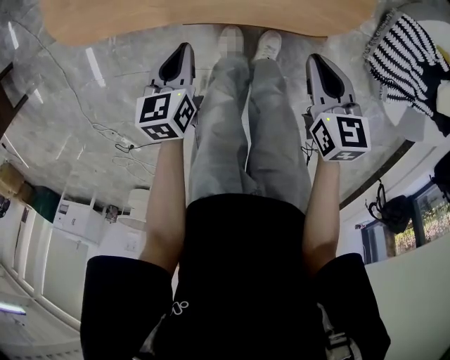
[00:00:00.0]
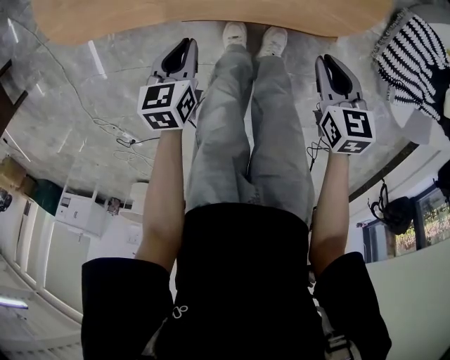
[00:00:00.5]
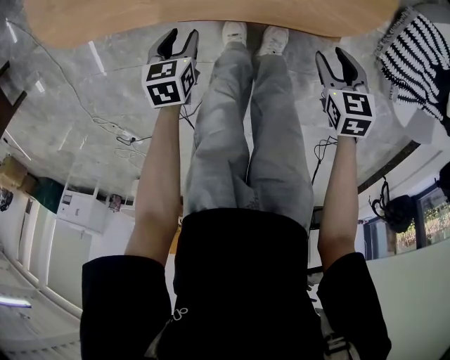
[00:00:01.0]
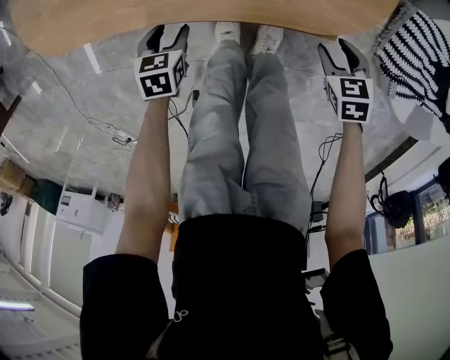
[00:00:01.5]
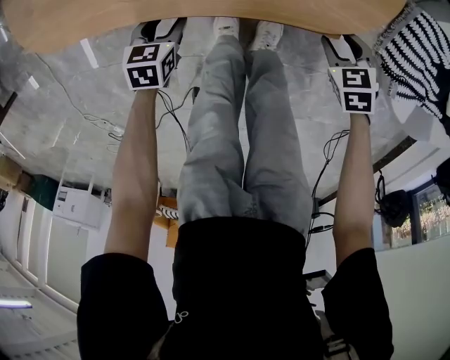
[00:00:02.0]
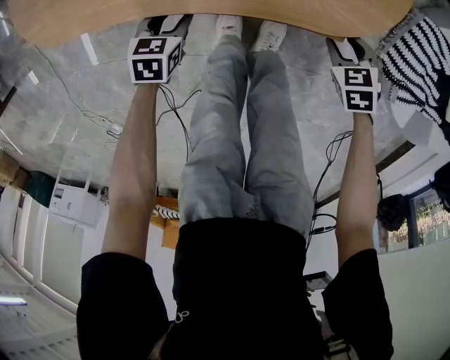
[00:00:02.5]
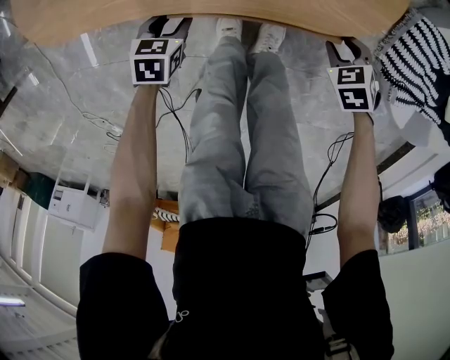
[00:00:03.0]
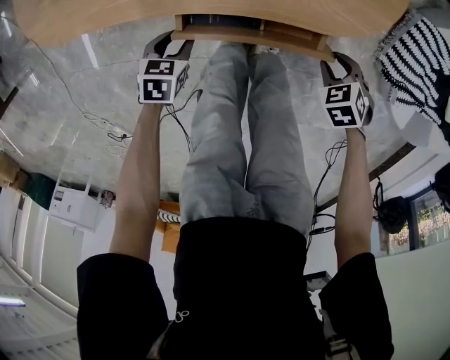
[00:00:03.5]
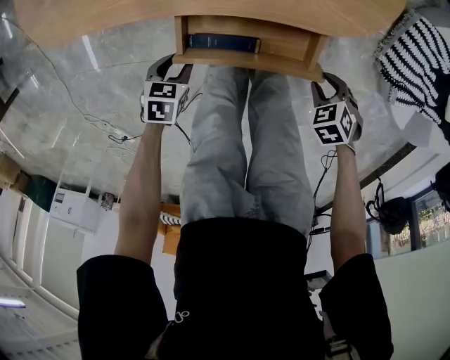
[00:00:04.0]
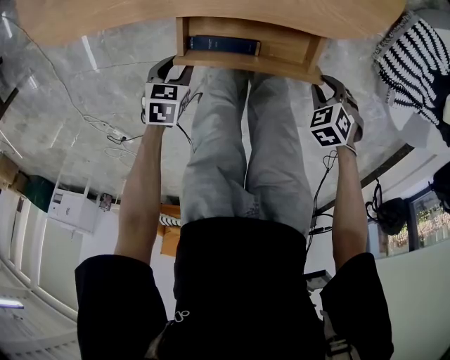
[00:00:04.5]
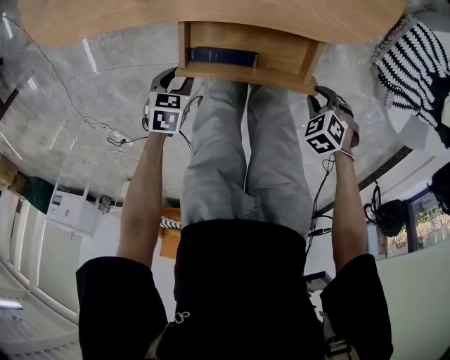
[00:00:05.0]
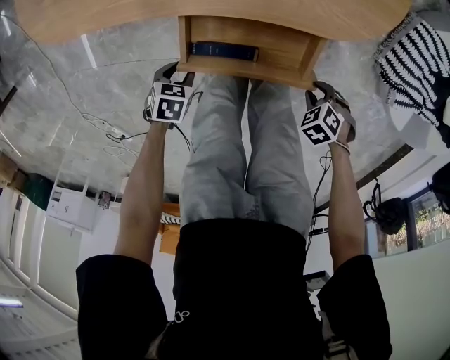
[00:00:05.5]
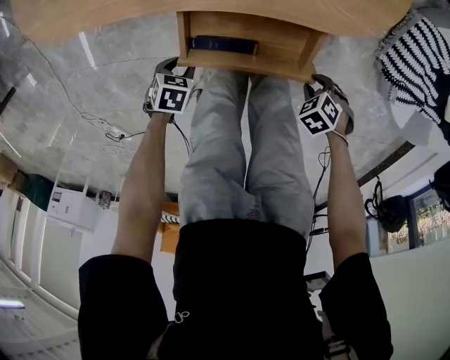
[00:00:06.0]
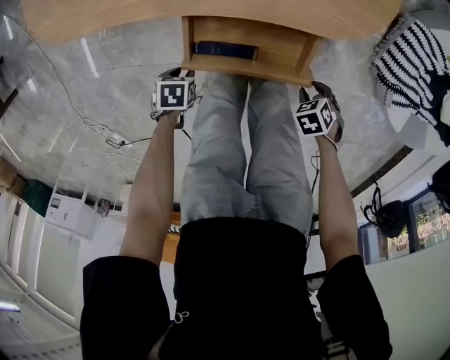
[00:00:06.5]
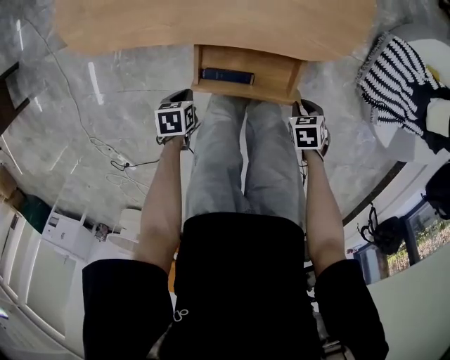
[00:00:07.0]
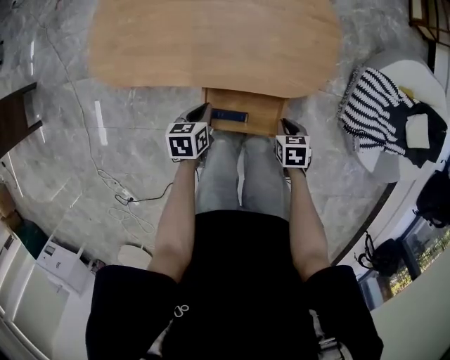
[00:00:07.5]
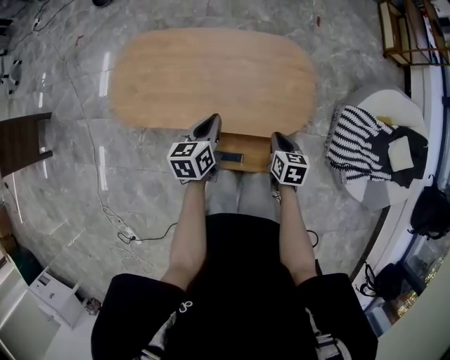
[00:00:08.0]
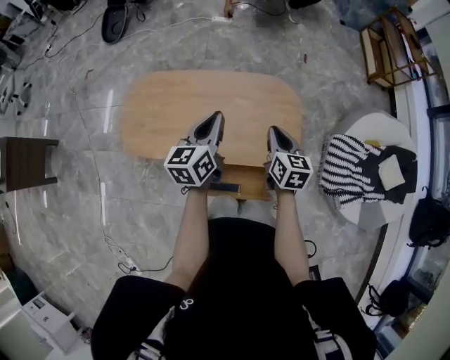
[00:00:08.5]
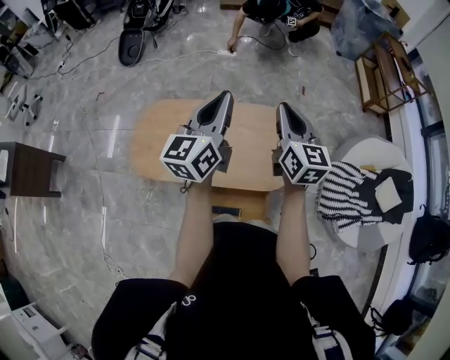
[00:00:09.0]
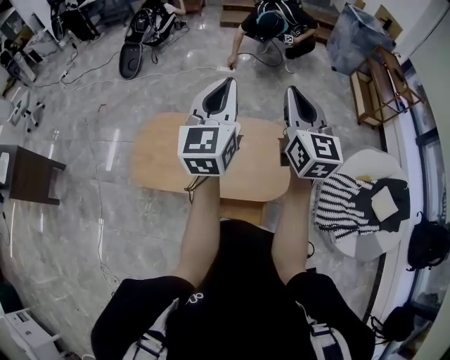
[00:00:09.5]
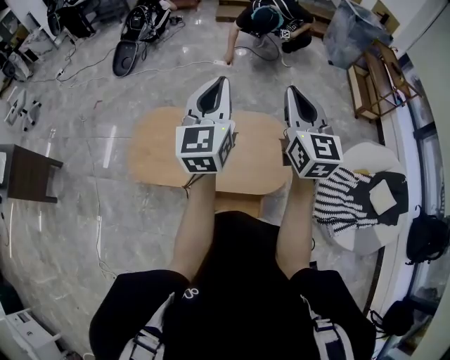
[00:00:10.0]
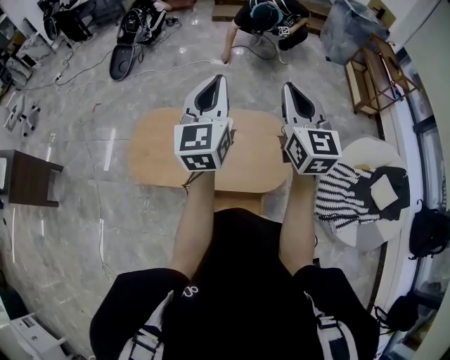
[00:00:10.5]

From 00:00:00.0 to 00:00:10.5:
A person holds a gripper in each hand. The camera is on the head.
From 00:00:00.0 to 00:00:02.0: Both grippers travel together downward, approximately 20 cm. The right gripper turns by roughly 40 degrees, and opens. The left gripper opens.
From 00:00:02.0 to 00:00:04.0: The right gripper ends up approximately 15 cm from where it was. Meanwhile the left gripper changes place by approximately 15 cm.
From 00:00:04.0 to 00:00:06.5: The left gripper moves some 5 cm. The right gripper shifts by some 5 cm.
From 00:00:06.5 to 00:00:08.5: The two grippers go about 50 cm upward. The right gripper points its fingers about 60 degrees further upward, and closes its fingers, while the left gripper points its fingers roughly 60 degrees further upward, and closes.
From 00:00:08.5 to 00:00:10.5: Both grippers travel together upward, about 30 cm. The right gripper rotates roughly 40 degrees, while the left gripper swivels approximately 30 degrees.

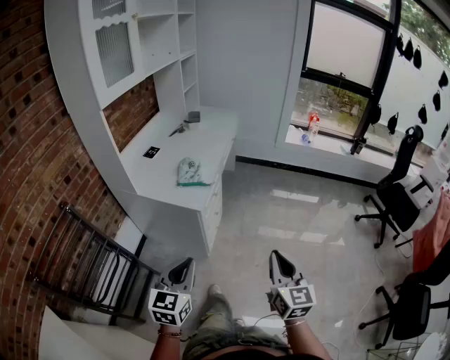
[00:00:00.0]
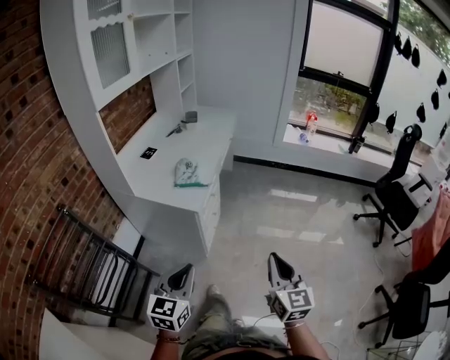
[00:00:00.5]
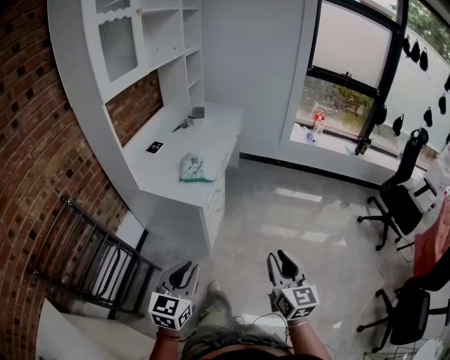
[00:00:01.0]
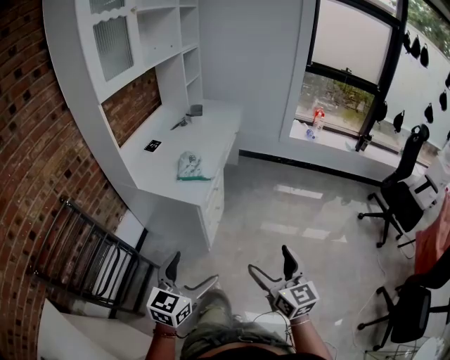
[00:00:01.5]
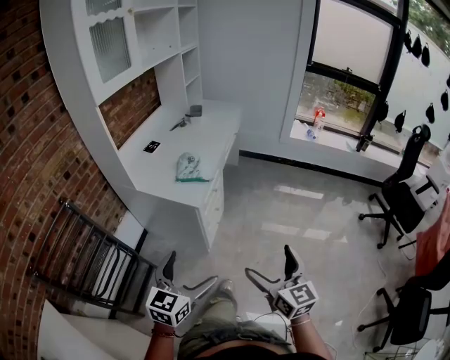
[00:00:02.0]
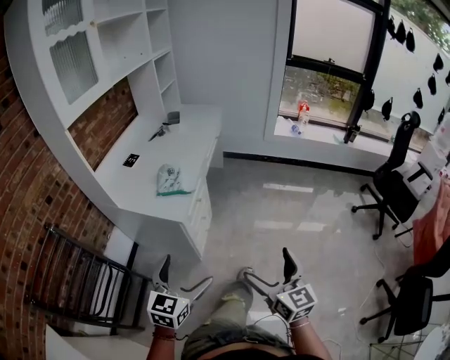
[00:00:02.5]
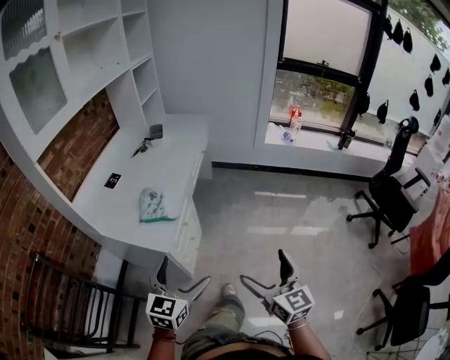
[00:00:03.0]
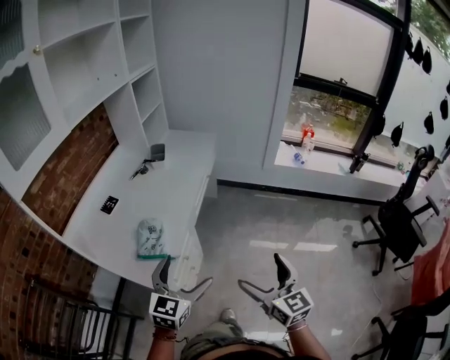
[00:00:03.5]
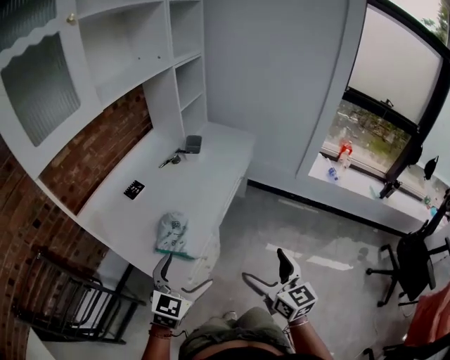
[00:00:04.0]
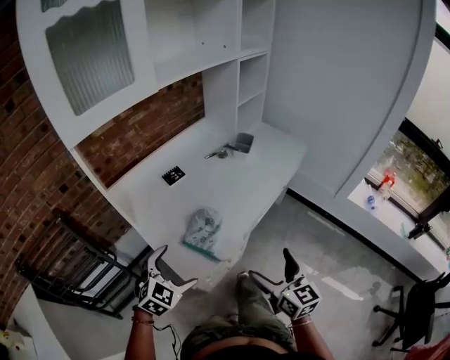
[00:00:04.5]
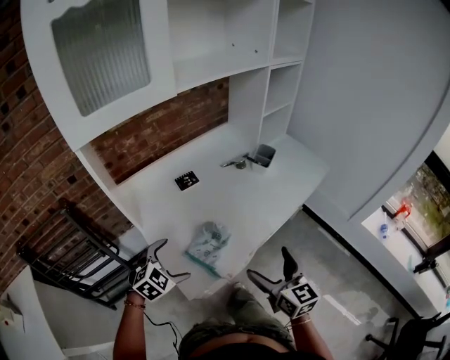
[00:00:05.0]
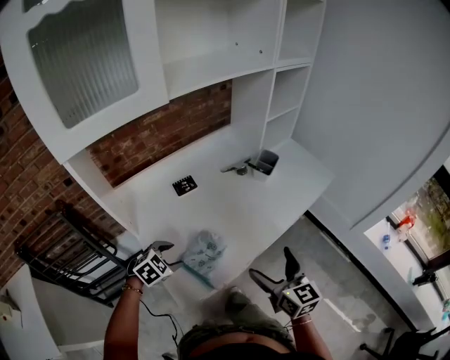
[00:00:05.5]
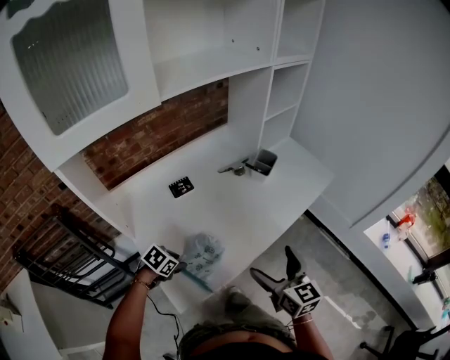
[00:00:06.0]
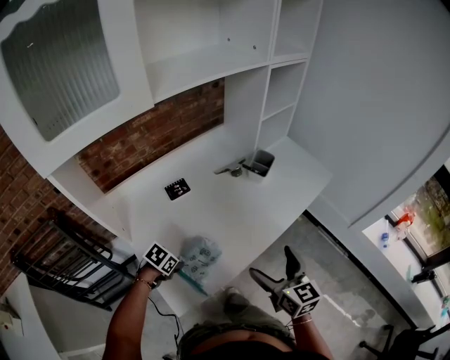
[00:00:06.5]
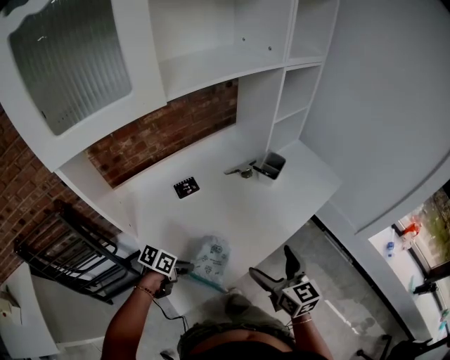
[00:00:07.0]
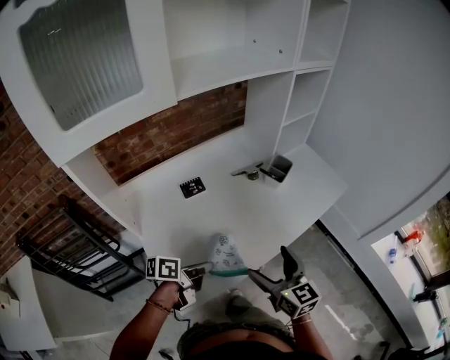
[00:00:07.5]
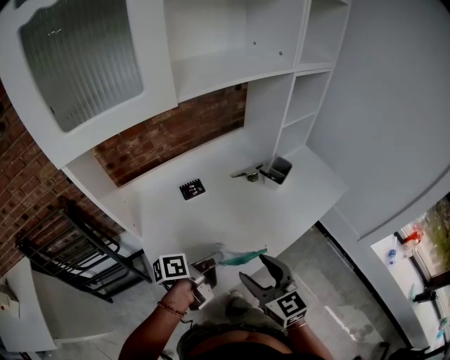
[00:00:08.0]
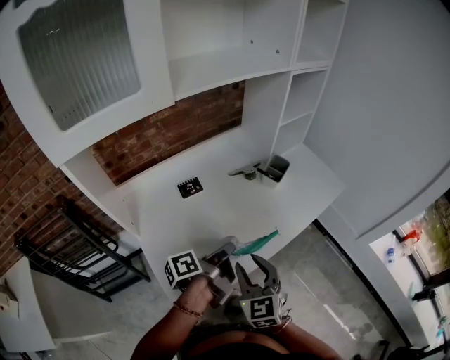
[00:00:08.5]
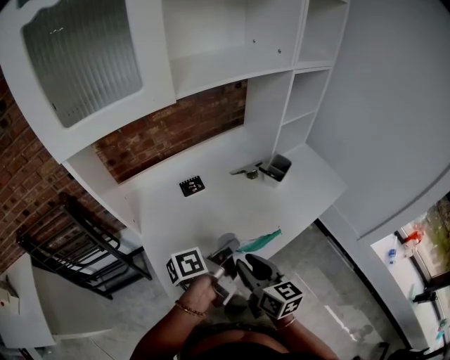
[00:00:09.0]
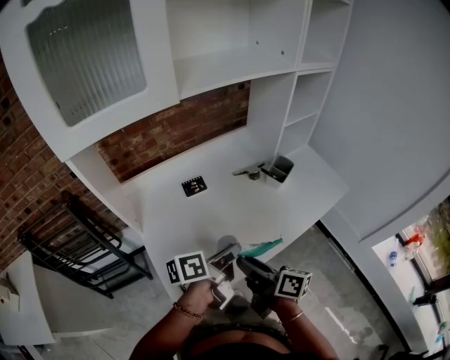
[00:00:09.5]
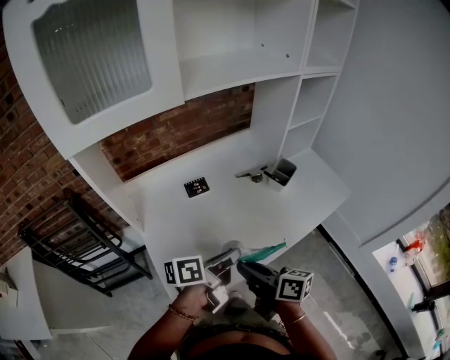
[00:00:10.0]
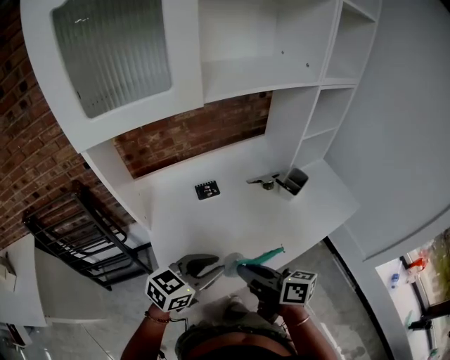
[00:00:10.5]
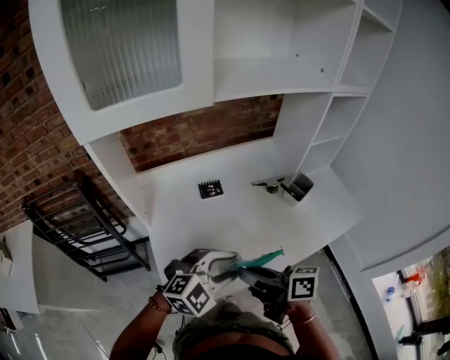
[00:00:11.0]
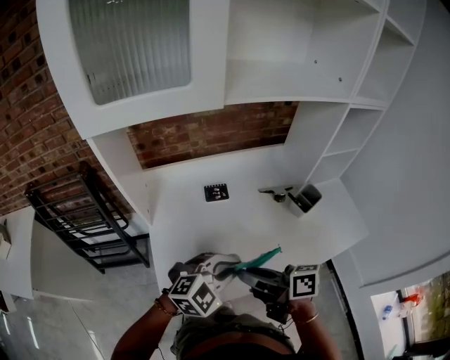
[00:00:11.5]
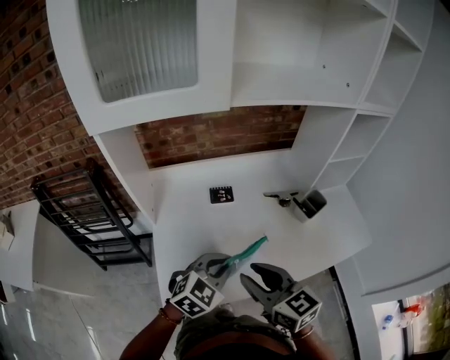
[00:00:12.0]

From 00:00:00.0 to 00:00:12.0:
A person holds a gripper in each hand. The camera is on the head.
From 00:00:00.0 to 00:00:02.0: The left gripper opens up. Meanwhile the right gripper opens up.
From 00:00:02.0 to 00:00:04.0: The pair of grippers is taken forward, some 40 cm.
From 00:00:04.0 to 00:00:06.0: The right gripper is displaced forward by some 25 cm, and turns by approximately 20 degrees. The left gripper travels downward, forward and to the left by some 30 cm, tilts its fingers roughly 40 degrees downward, and closes its fingers.
From 00:00:06.0 to 00:00:08.0: The right gripper travels to the left by approximately 10 cm, rotates roughly 20 degrees, and closes, while the left gripper moves upward, to the right and forward, about 20 cm, and tilts its fingers some 50 degrees upward.
From 00:00:08.0 to 00:00:10.0: The left gripper heads upward, covering about 5 cm, while the right gripper rolls clockwise, seen from behind, by about 50 degrees, and closes its fingers.
From 00:00:10.0 to 00:00:12.0: The right gripper moves some 5 cm, and rolls counterclockwise, seen from behind, by roughly 40 degrees. The left gripper rolls clockwise, seen from behind, by some 70 degrees.

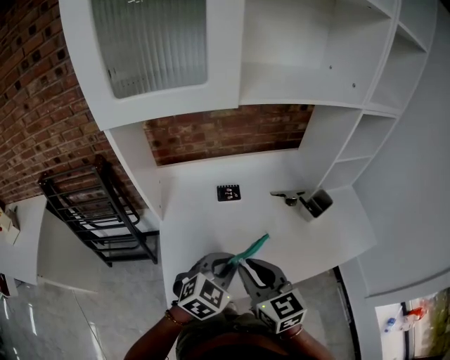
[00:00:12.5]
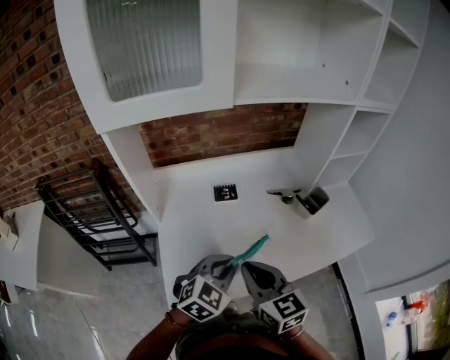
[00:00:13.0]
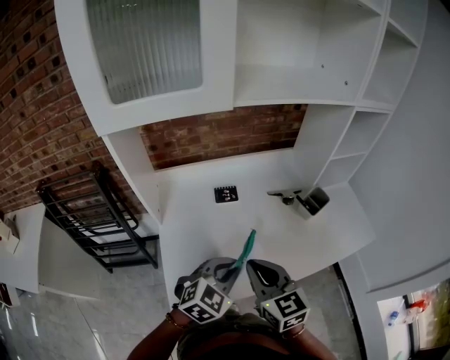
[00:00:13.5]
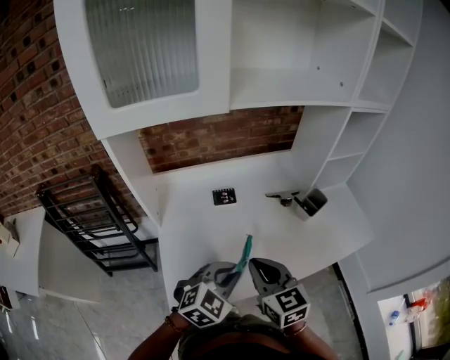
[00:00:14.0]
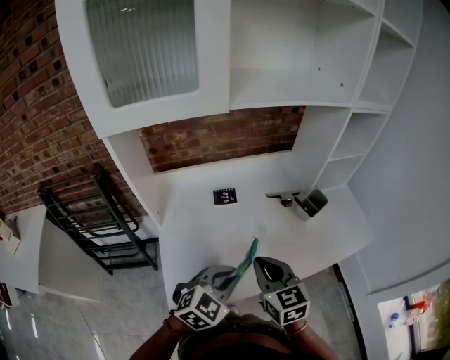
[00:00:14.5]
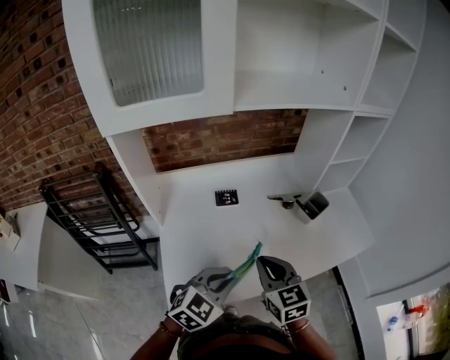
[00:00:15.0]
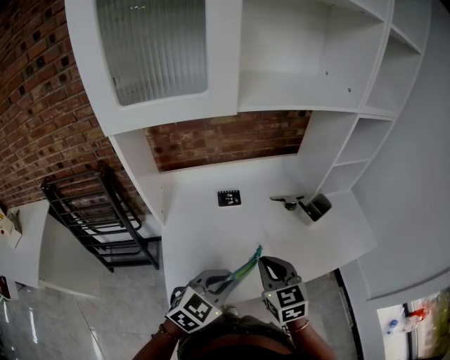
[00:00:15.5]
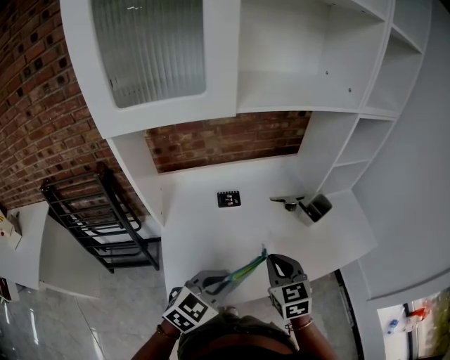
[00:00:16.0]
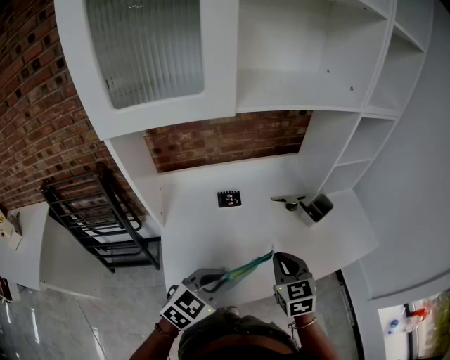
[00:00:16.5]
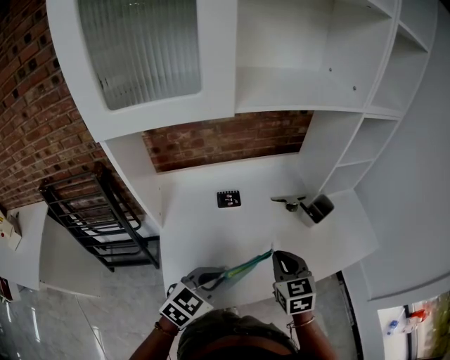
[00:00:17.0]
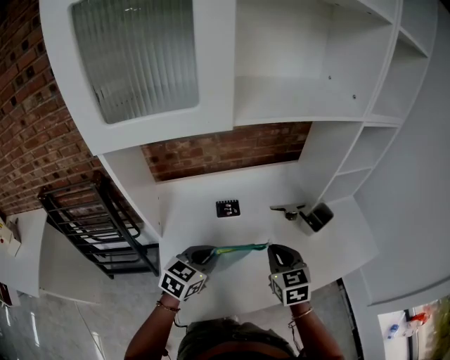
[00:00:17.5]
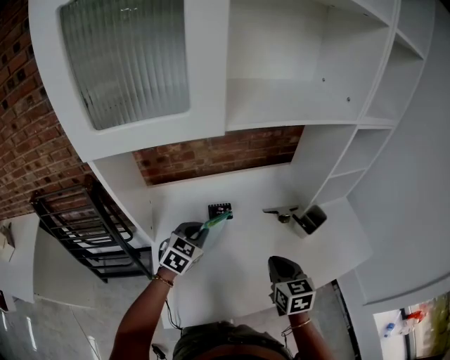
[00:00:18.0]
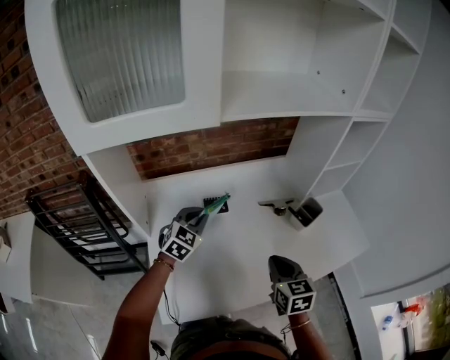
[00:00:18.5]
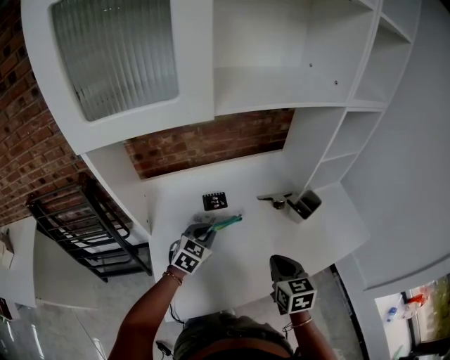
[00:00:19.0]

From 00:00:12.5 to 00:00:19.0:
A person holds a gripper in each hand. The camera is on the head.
From 00:00:12.5 to 00:00:14.5: The grippers stay close to where they were, moving slightly.
From 00:00:14.5 to 00:00:17.0: The right gripper moves forward, approximately 5 cm.
From 00:00:17.0 to 00:00:19.0: The left gripper moves forward and downward, about 20 cm.
